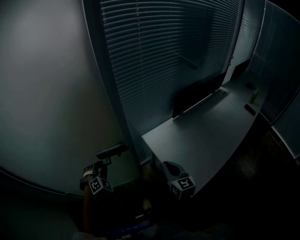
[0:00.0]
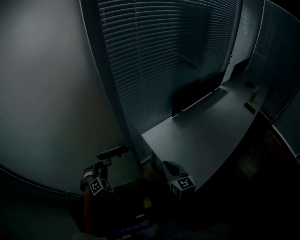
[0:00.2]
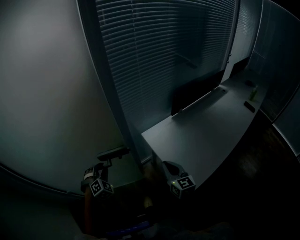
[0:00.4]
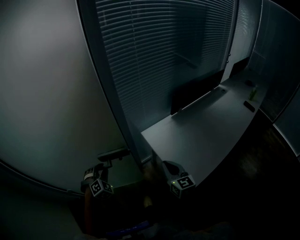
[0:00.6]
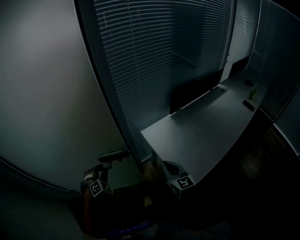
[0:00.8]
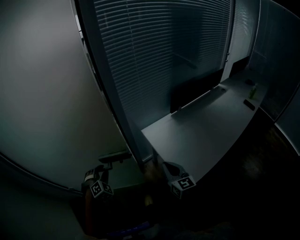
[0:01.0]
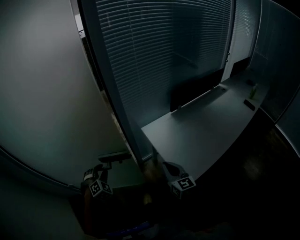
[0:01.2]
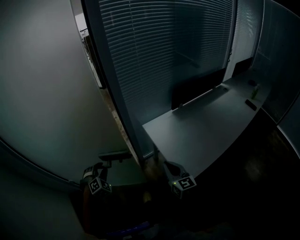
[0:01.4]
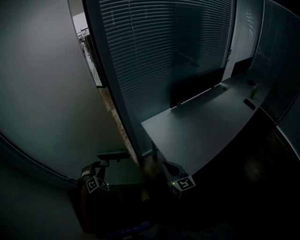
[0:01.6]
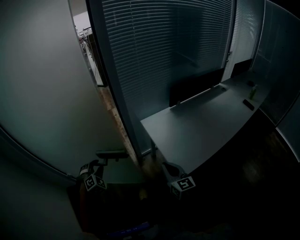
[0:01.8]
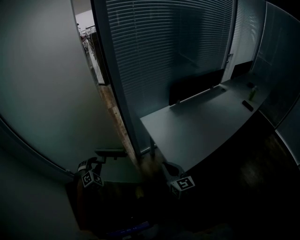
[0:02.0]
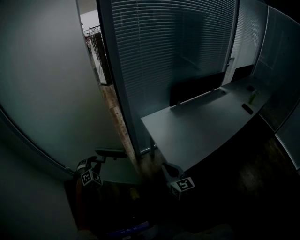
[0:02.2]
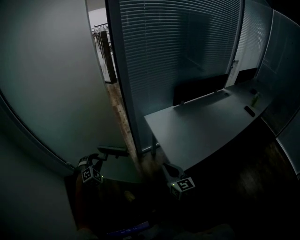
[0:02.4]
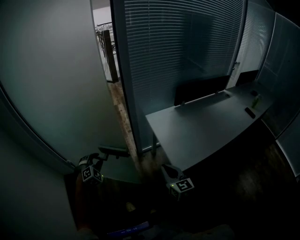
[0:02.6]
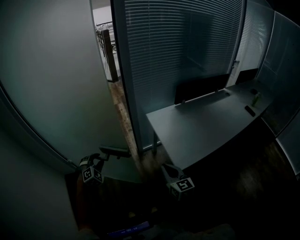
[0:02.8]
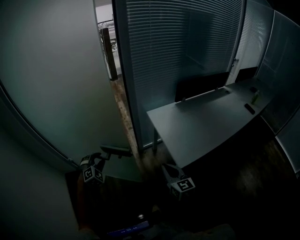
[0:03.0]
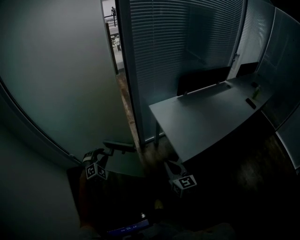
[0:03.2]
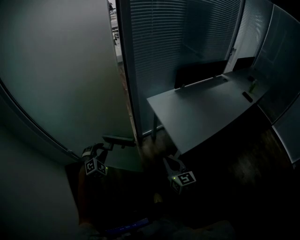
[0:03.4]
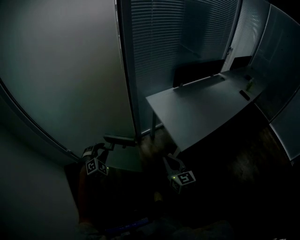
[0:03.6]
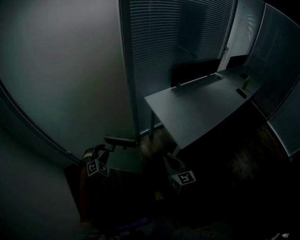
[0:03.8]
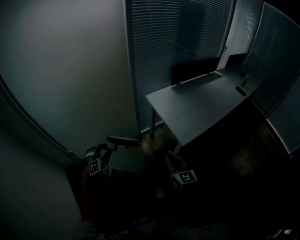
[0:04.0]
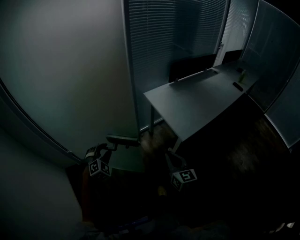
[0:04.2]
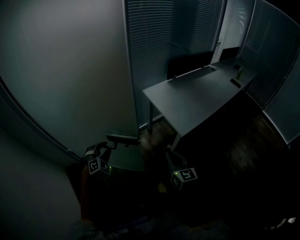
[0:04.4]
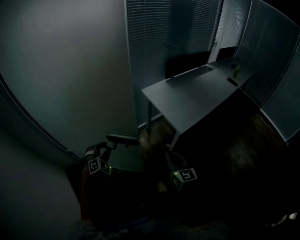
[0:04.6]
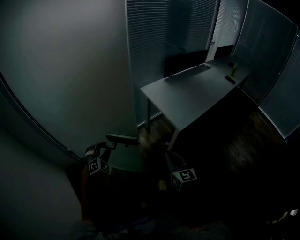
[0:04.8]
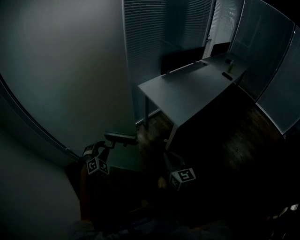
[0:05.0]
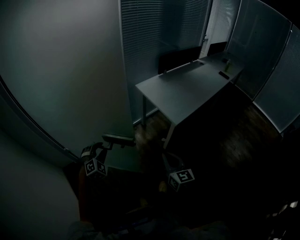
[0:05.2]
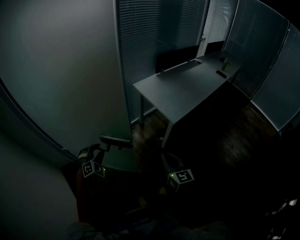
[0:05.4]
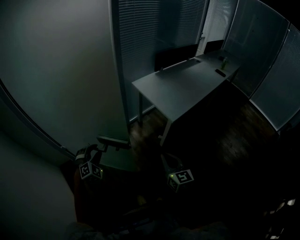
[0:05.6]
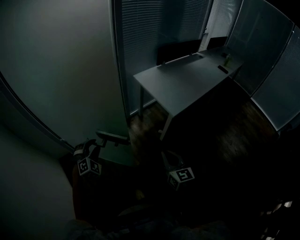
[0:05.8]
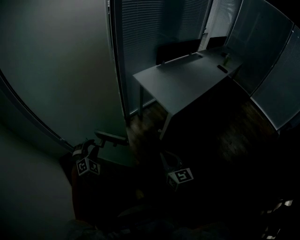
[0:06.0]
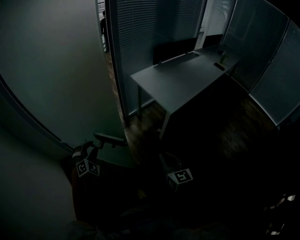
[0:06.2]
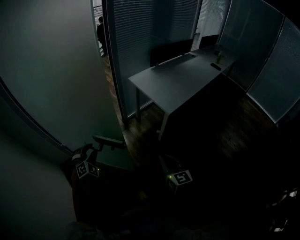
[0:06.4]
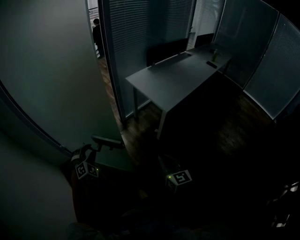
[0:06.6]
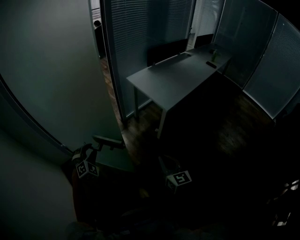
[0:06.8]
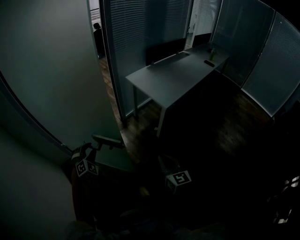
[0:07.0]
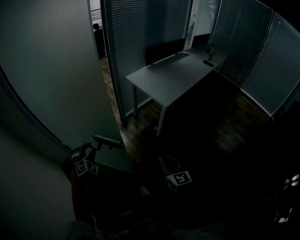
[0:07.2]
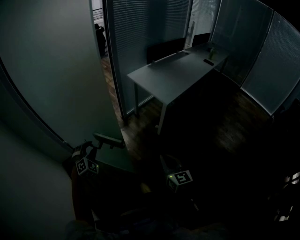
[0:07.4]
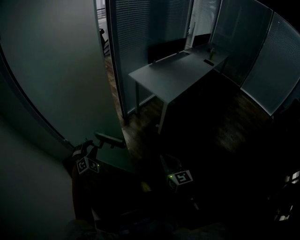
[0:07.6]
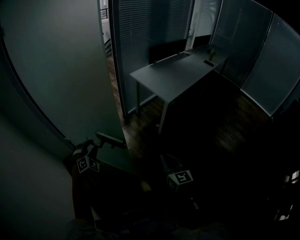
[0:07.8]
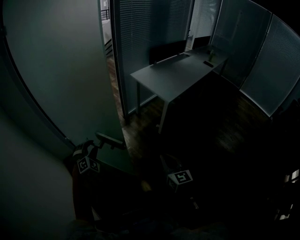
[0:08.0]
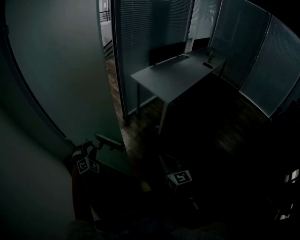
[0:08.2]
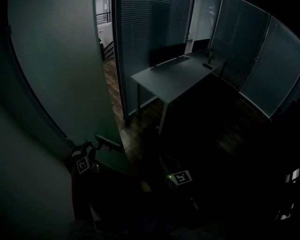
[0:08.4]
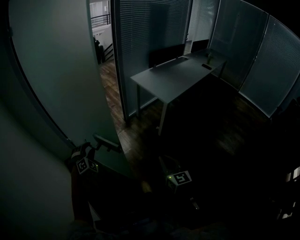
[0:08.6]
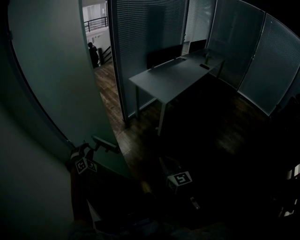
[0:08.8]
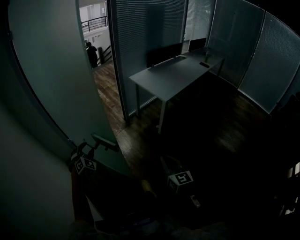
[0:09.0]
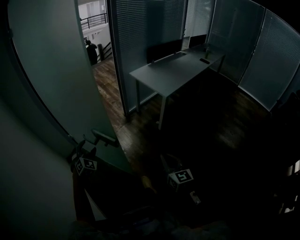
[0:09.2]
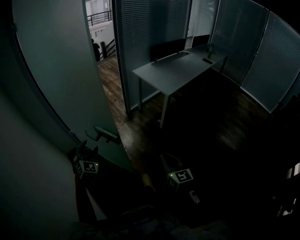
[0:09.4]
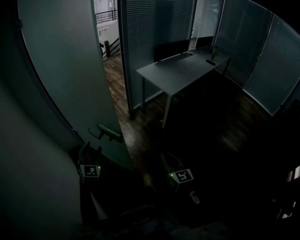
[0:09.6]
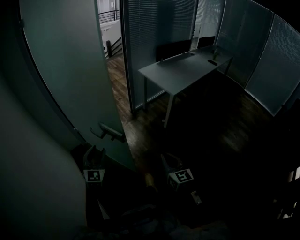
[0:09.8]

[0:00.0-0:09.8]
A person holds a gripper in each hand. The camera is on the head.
0:00.0 to 0:01.4: Both grippers travel together backward, roughly 10 cm.
0:01.4 to 0:02.8: The two grippers go roughly 15 cm backward.
0:02.8 to 0:04.2: The left gripper is displaced backward by approximately 10 cm; the right gripper is displaced backward and to the left by about 15 cm.
0:04.2 to 0:05.6: The two grippers go roughly 15 cm backward.
0:05.6 to 0:07.0: The right gripper heads backward, covering about 15 cm. The left gripper travels backward by about 10 cm.
0:07.0 to 0:08.4: Both grippers move backward and to the left, about 10 cm.
0:08.4 to 0:09.8: The left gripper is displaced backward and upward by approximately 15 cm, and twists some 40 degrees counterclockwise, seen from behind. The right gripper shifts approximately 5 cm backward.

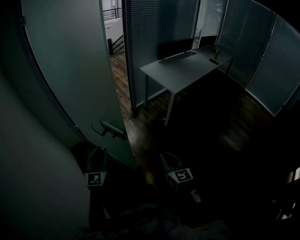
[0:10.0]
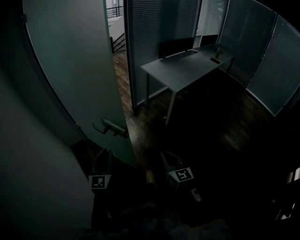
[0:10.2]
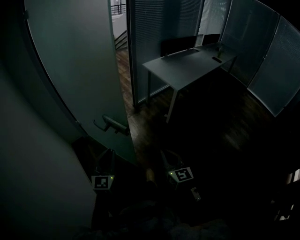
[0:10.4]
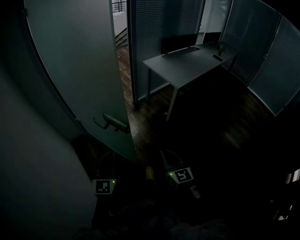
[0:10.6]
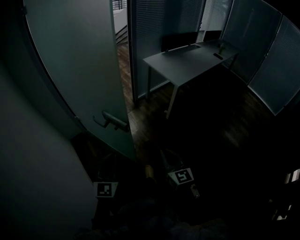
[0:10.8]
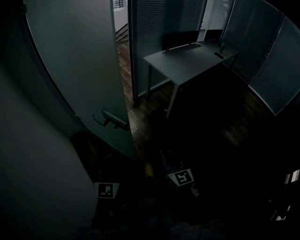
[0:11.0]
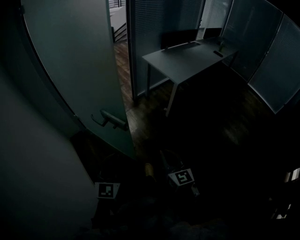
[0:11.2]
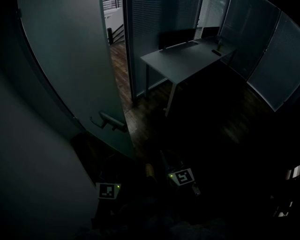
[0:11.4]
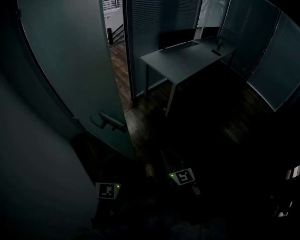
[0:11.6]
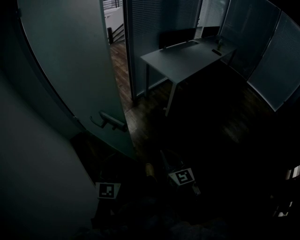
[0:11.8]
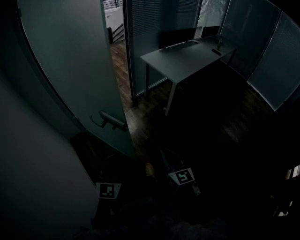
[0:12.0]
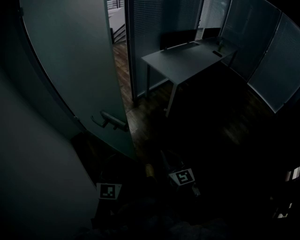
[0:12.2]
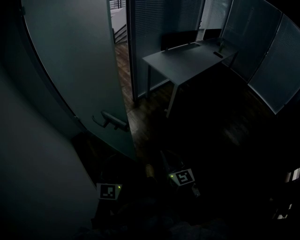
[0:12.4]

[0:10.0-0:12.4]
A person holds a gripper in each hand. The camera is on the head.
0:10.0 to 0:11.2: The left gripper goes about 10 cm backward and to the right, and closes up.
0:11.2 to 0:12.4: Neither gripper changes place.

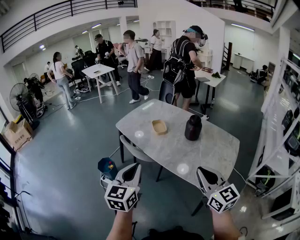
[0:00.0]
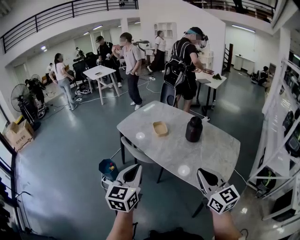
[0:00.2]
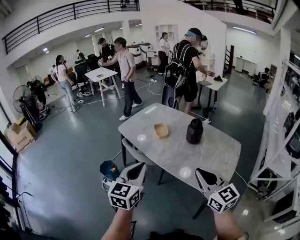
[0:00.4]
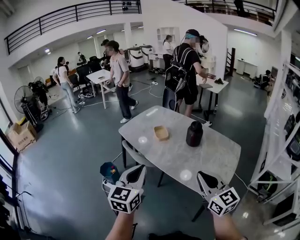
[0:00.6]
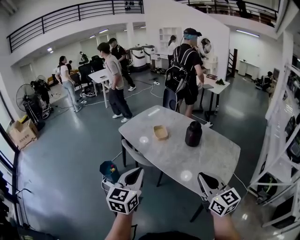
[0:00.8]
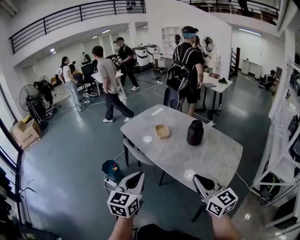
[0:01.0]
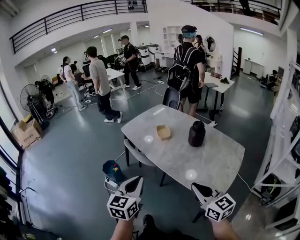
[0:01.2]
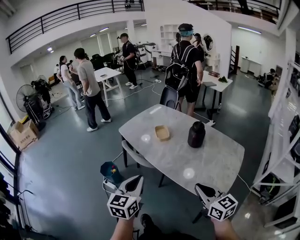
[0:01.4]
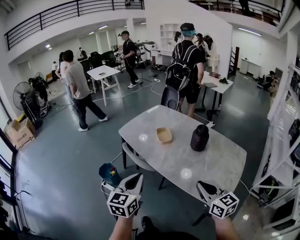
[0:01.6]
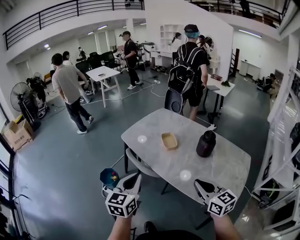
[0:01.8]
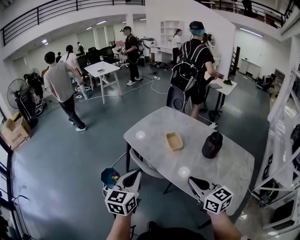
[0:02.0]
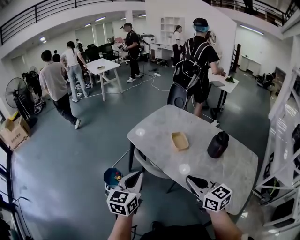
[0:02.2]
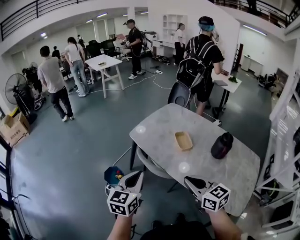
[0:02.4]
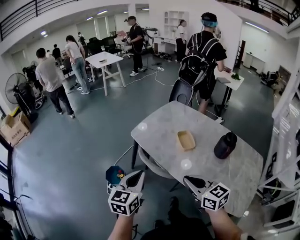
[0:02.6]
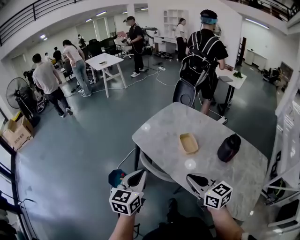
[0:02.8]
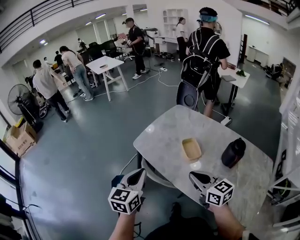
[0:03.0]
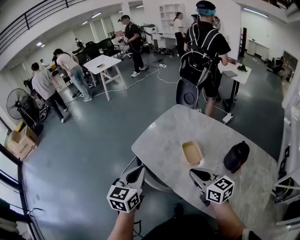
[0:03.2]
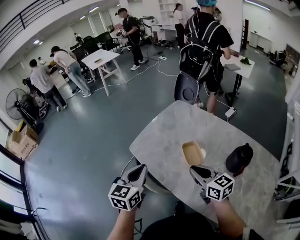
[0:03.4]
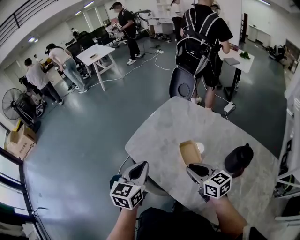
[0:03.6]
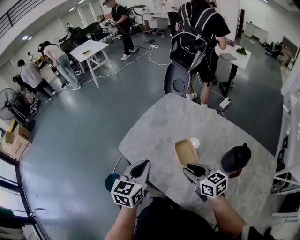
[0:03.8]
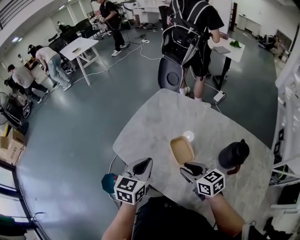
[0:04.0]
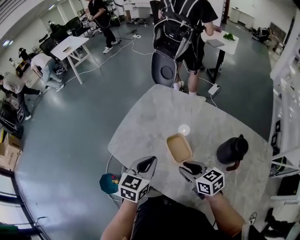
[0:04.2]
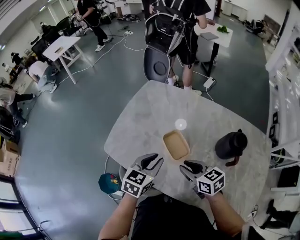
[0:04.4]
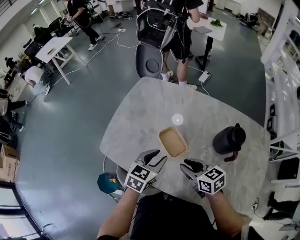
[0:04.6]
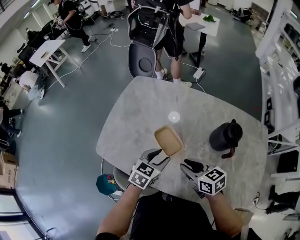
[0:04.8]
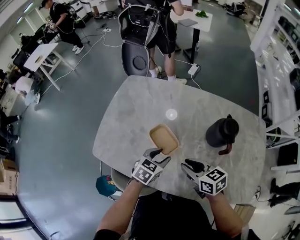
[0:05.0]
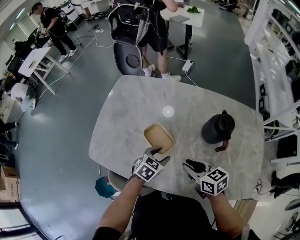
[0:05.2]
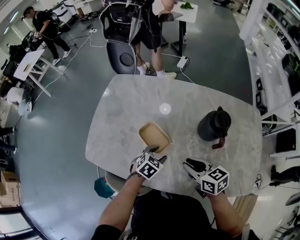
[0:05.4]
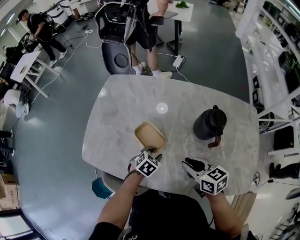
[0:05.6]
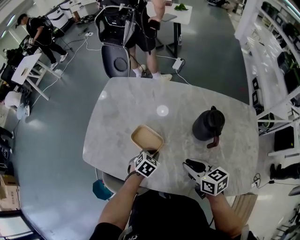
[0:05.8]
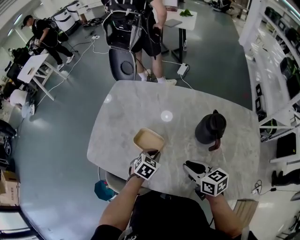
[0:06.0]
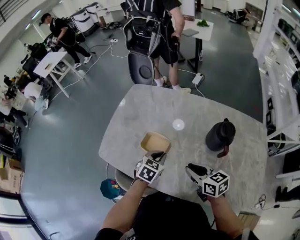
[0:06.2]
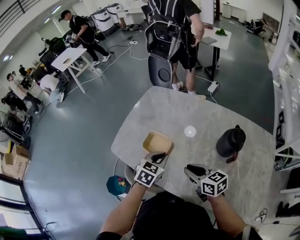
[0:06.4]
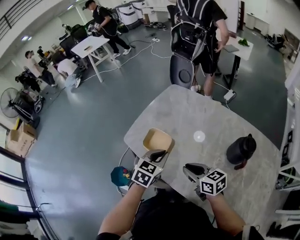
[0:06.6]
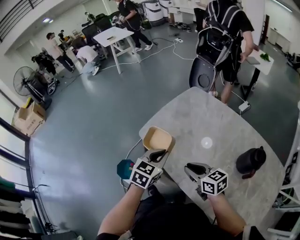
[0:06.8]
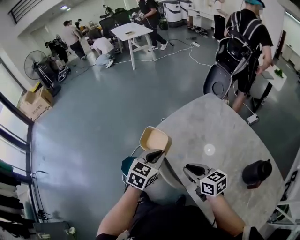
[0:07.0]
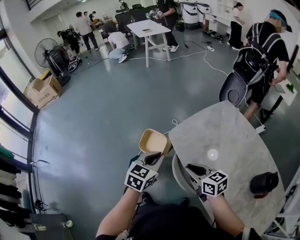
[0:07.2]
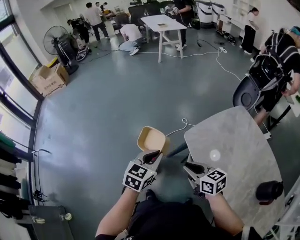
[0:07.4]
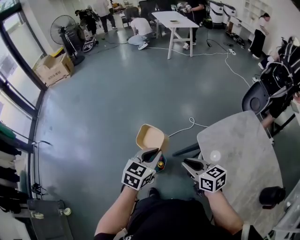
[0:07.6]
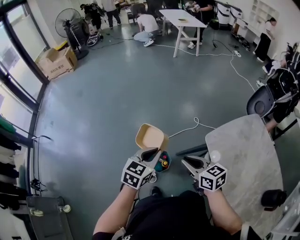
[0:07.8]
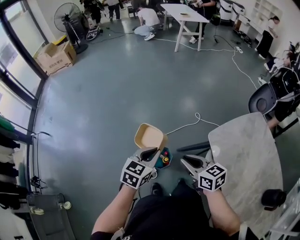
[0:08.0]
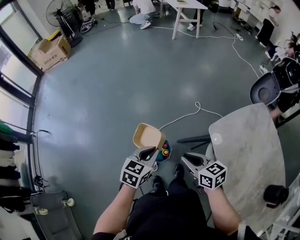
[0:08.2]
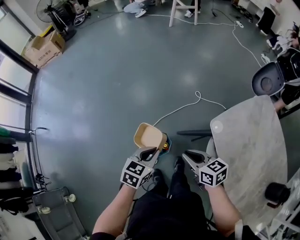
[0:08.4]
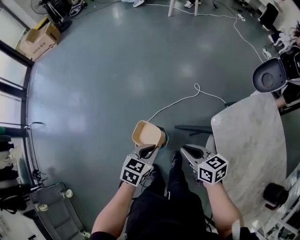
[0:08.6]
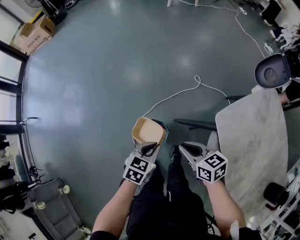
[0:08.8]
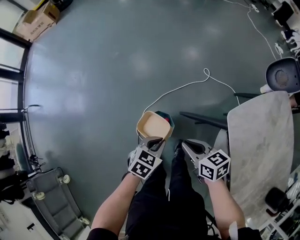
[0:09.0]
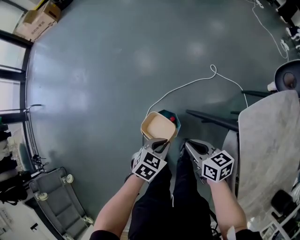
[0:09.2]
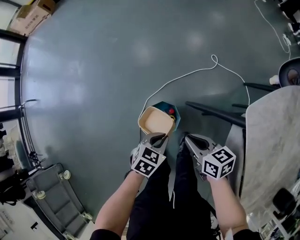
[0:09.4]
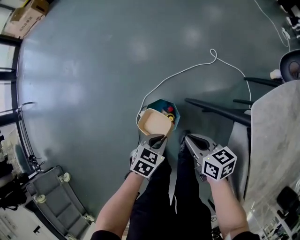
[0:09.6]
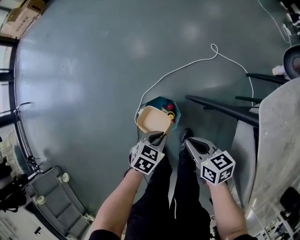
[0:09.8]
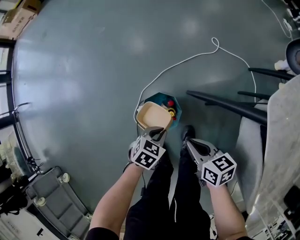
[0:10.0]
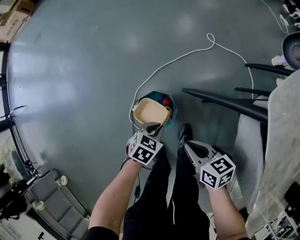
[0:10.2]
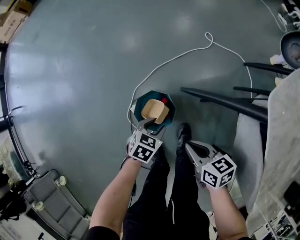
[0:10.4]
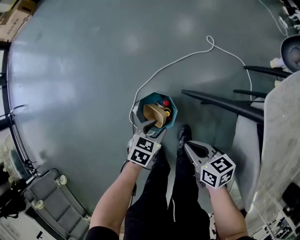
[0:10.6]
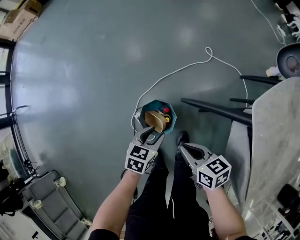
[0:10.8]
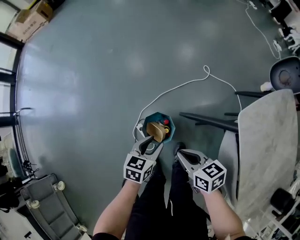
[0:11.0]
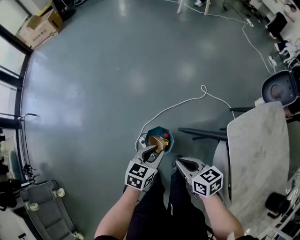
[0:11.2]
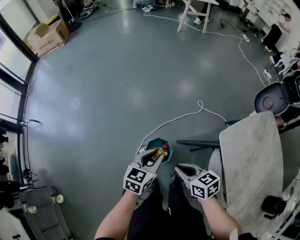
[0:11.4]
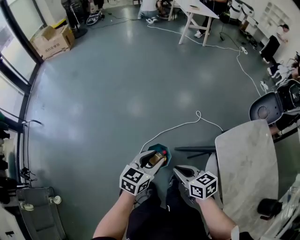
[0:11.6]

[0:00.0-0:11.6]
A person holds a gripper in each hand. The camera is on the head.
0:00.0 to 0:01.4: The left gripper moves about 5 cm. Meanwhile the right gripper shifts some 5 cm downward.
0:01.4 to 0:02.8: Both grippers move forward and to the left, some 30 cm.
0:02.8 to 0:04.4: The left gripper is displaced forward, to the right and downward by some 35 cm, and swivels approximately 30 degrees; the right gripper goes approximately 25 cm forward, downward and to the right, rotates some 20 degrees, and opens.
0:04.4 to 0:05.8: The left gripper goes some 20 cm downward and to the right, changes its angle by approximately 40 degrees, and opens, then closes again. Meanwhile the right gripper heads to the right, covering about 10 cm.
0:05.8 to 0:07.2: The right gripper ends up some 35 cm from where it was, and turns by some 50 degrees; the left gripper ends up roughly 40 cm from where it was, and turns by about 60 degrees.
0:07.2 to 0:08.8: The right gripper travels to the left, downward and forward by approximately 30 cm, while the left gripper goes roughly 30 cm downward and to the left, and turns by roughly 20 degrees.
0:08.8 to 0:10.2: Both grippers move downward, some 25 cm.
0:10.2 to 0:11.6: Both grippers travel together upward, roughly 35 cm. The left gripper angles its fingers upward, by about 30 degrees, and opens.
